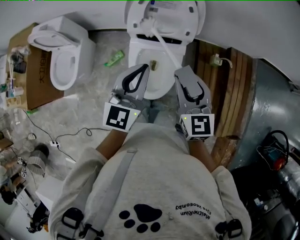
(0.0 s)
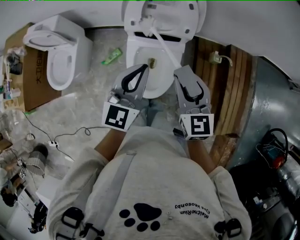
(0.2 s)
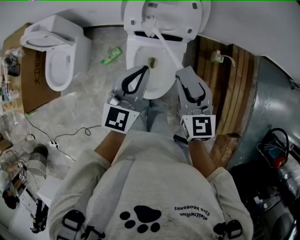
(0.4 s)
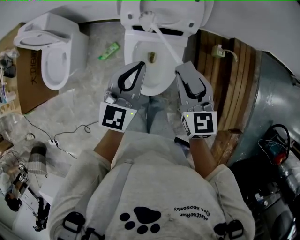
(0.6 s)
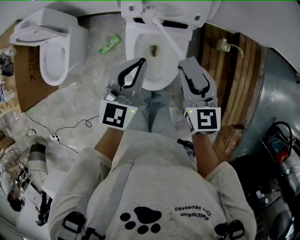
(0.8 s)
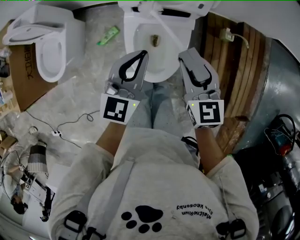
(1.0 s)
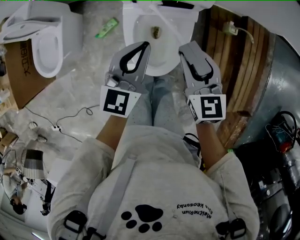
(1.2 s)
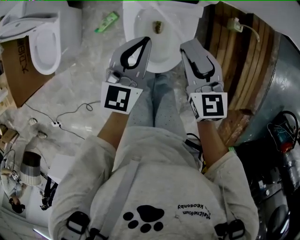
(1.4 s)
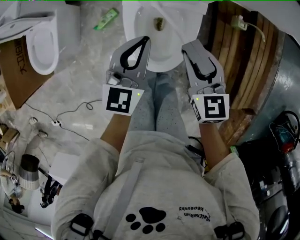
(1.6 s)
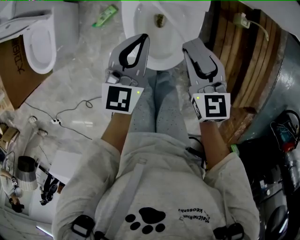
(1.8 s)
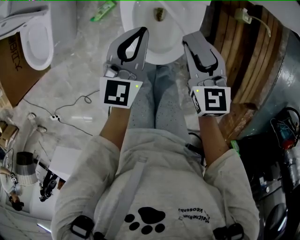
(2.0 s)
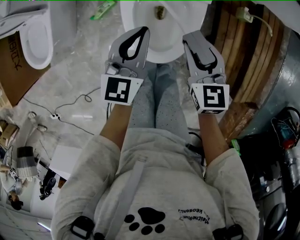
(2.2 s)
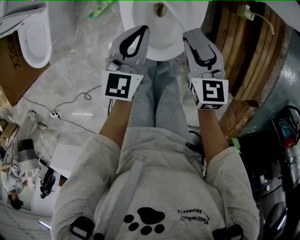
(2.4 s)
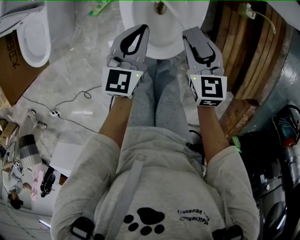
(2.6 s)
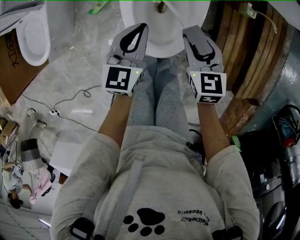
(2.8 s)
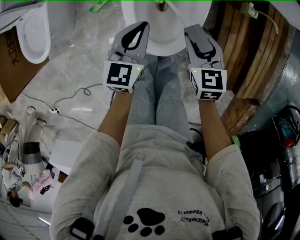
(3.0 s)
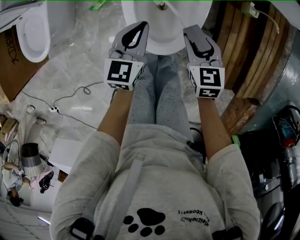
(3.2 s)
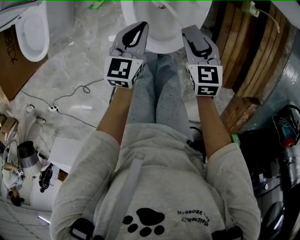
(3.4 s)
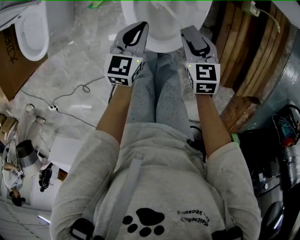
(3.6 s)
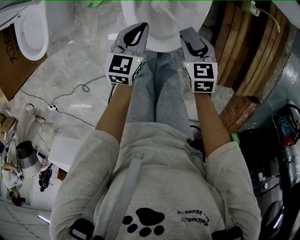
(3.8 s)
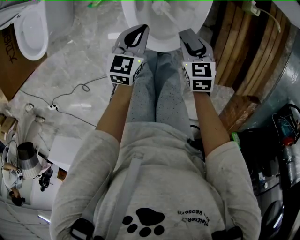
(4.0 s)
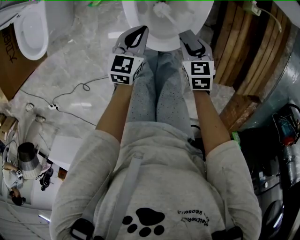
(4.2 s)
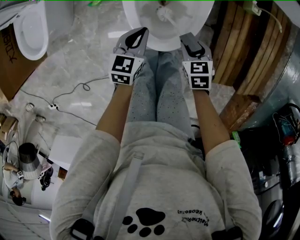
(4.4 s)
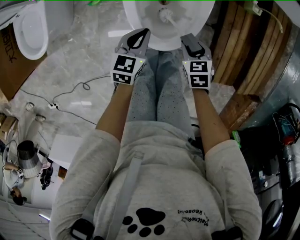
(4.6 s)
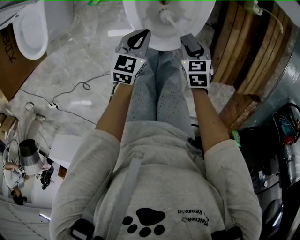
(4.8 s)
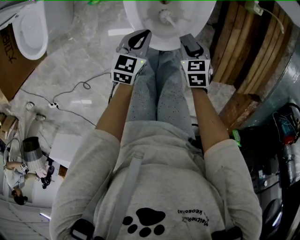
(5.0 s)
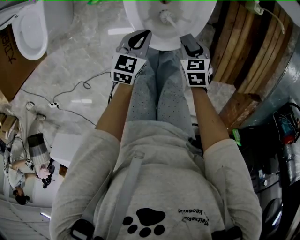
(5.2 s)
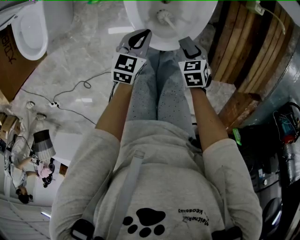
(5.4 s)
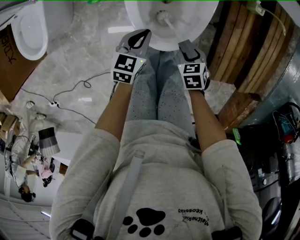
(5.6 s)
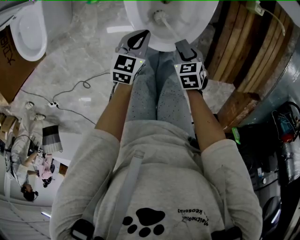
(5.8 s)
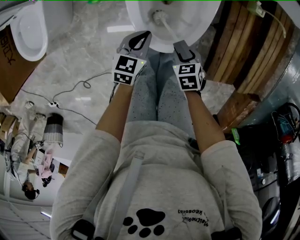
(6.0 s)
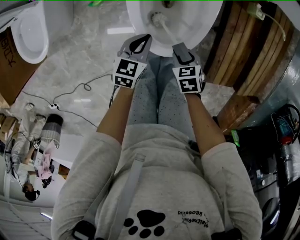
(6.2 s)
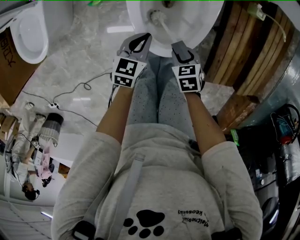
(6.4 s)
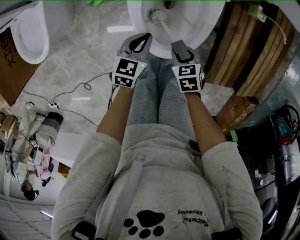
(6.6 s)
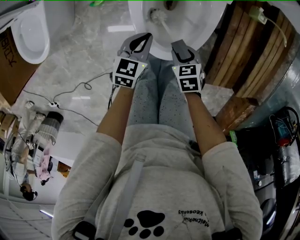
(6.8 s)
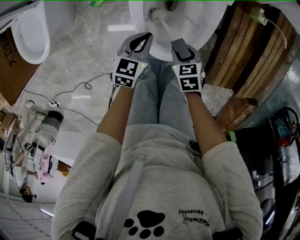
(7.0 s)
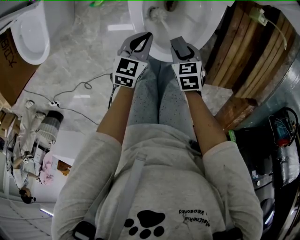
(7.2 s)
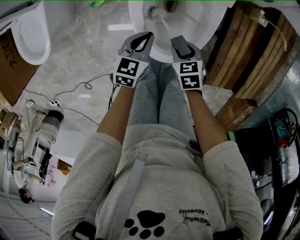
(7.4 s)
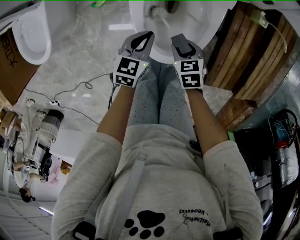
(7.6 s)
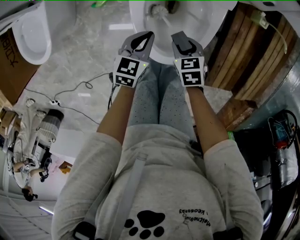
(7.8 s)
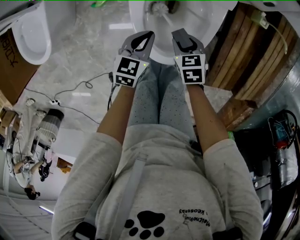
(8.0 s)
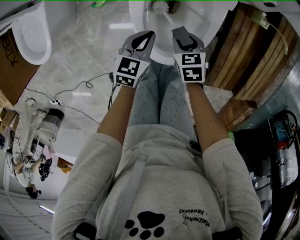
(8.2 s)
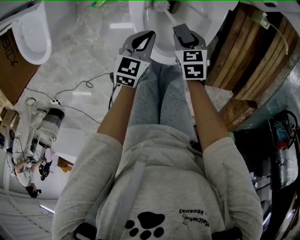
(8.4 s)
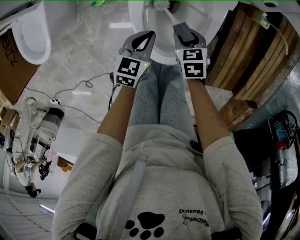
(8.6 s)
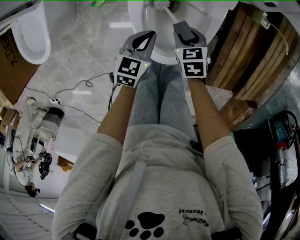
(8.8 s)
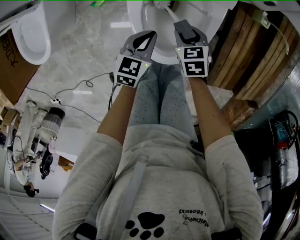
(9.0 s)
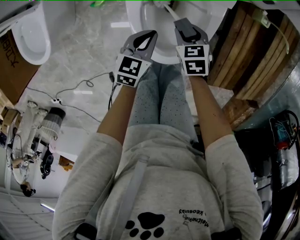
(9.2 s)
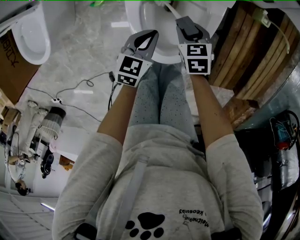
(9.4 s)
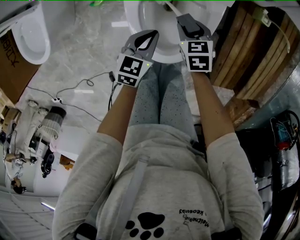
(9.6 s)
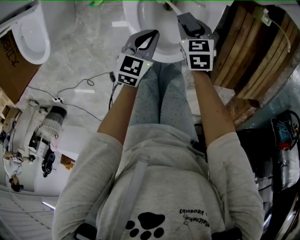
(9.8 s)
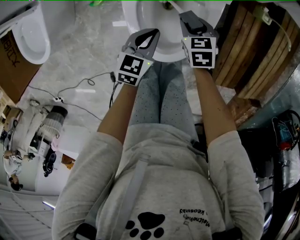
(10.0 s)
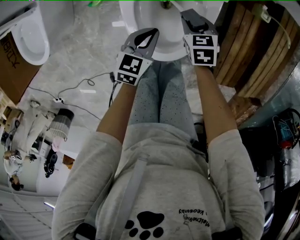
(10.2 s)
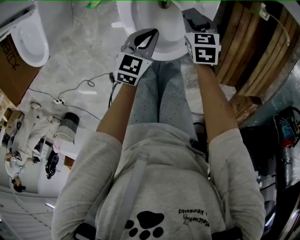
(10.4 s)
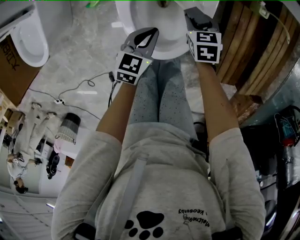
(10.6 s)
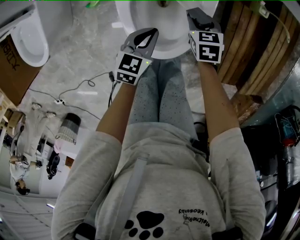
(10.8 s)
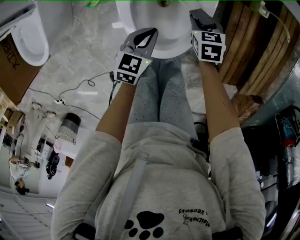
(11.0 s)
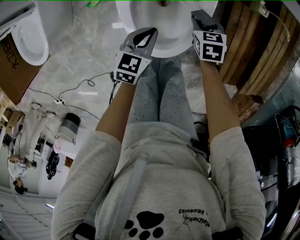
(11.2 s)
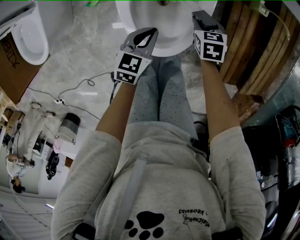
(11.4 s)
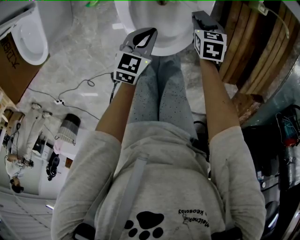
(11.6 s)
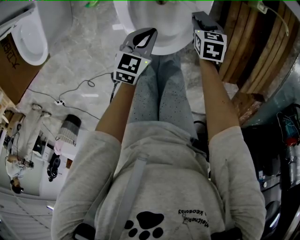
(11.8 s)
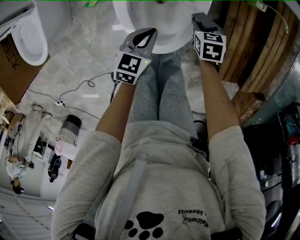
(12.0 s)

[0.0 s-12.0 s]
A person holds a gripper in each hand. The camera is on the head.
0.0 to 1.6 s: Both grippers travel together downward, about 25 cm.
1.6 to 3.0 s: Both grippers move downward, about 10 cm.
3.0 to 4.4 s: The two grippers go roughly 10 cm downward and backward.
4.4 to 6.0 s: The right gripper ends up some 5 cm from where it was.
6.0 to 7.6 s: The right gripper is displaced forward by roughly 10 cm; the left gripper heads forward, covering roughly 5 cm.
7.6 to 9.0 s: The right gripper moves forward, about 5 cm.
9.0 to 10.4 s: The right gripper moves to the right, some 5 cm.
10.4 to 12.0 s: The right gripper moves to the right, about 5 cm.

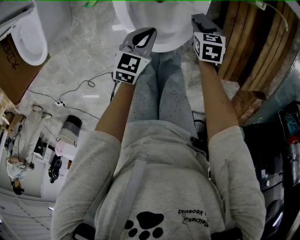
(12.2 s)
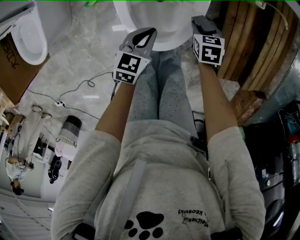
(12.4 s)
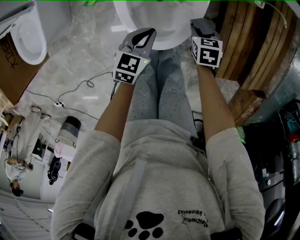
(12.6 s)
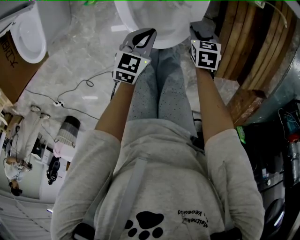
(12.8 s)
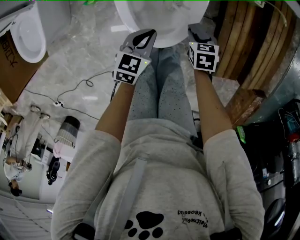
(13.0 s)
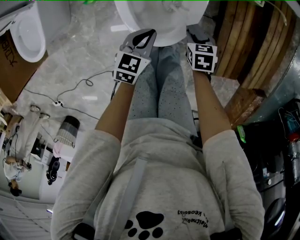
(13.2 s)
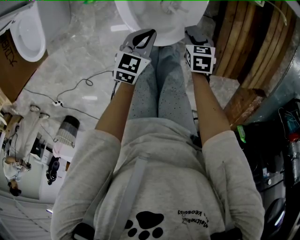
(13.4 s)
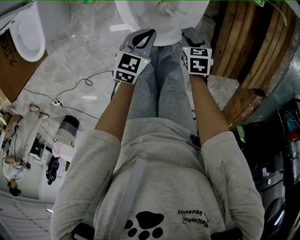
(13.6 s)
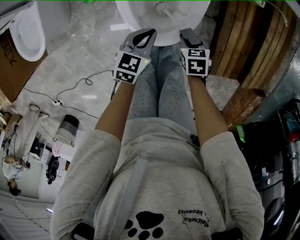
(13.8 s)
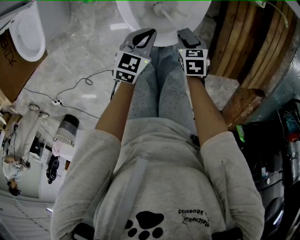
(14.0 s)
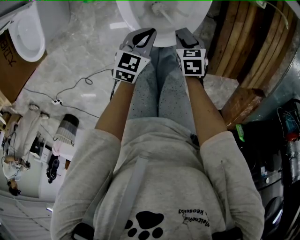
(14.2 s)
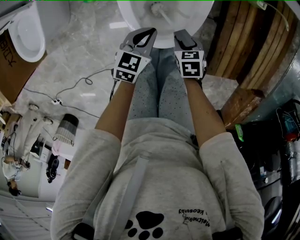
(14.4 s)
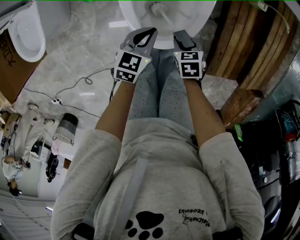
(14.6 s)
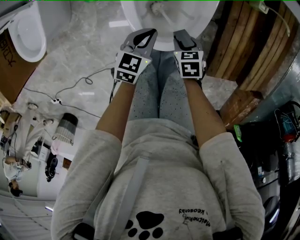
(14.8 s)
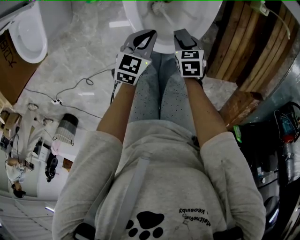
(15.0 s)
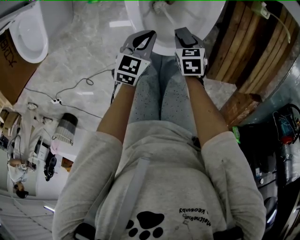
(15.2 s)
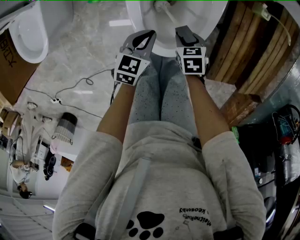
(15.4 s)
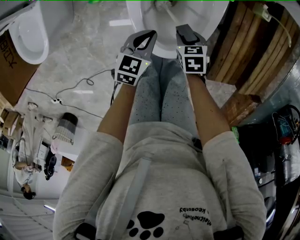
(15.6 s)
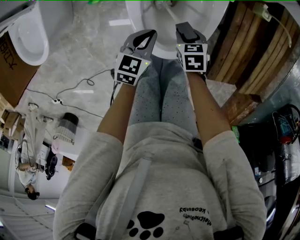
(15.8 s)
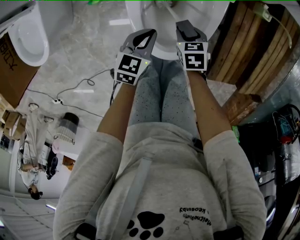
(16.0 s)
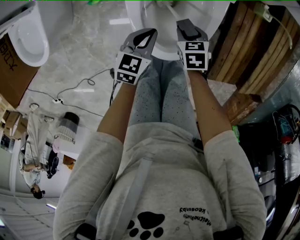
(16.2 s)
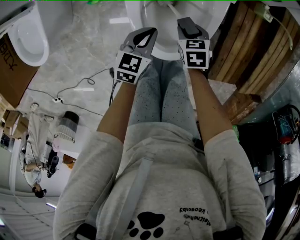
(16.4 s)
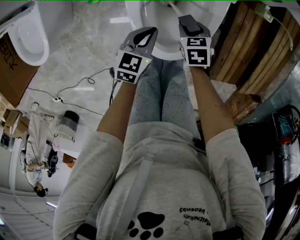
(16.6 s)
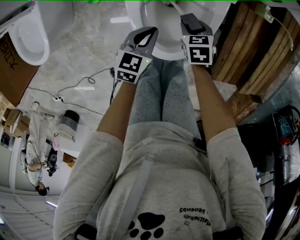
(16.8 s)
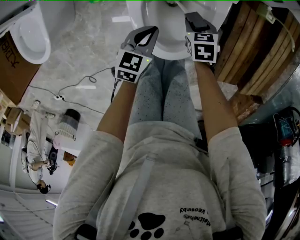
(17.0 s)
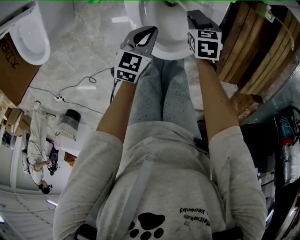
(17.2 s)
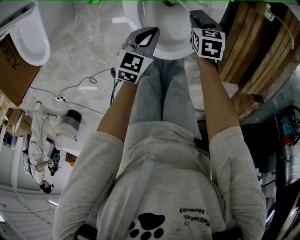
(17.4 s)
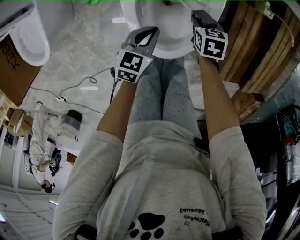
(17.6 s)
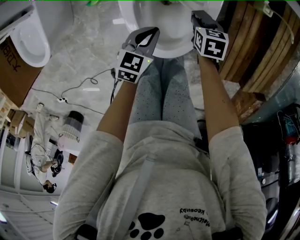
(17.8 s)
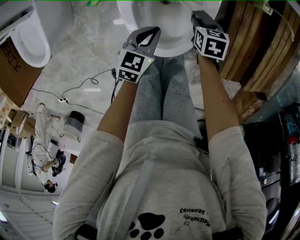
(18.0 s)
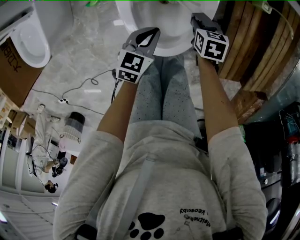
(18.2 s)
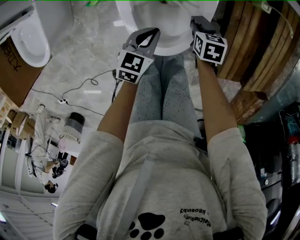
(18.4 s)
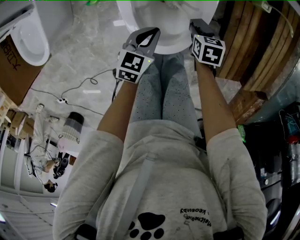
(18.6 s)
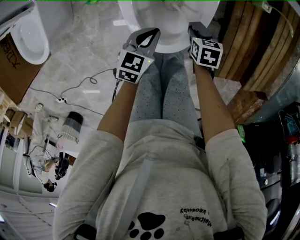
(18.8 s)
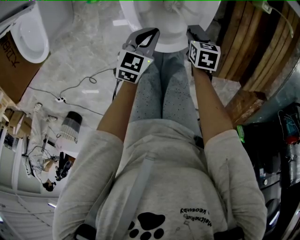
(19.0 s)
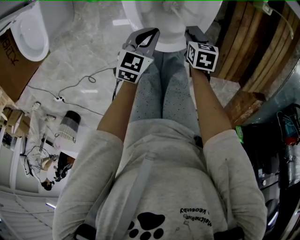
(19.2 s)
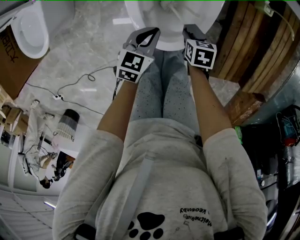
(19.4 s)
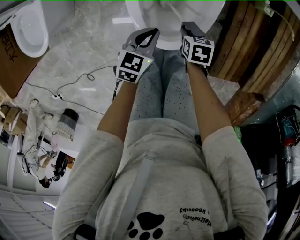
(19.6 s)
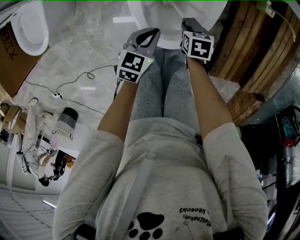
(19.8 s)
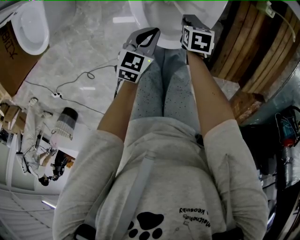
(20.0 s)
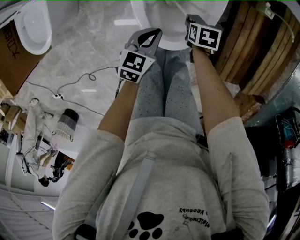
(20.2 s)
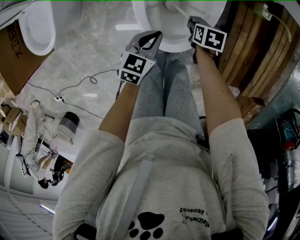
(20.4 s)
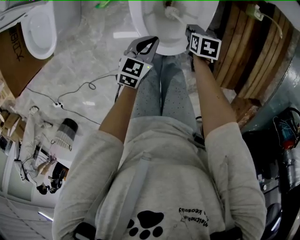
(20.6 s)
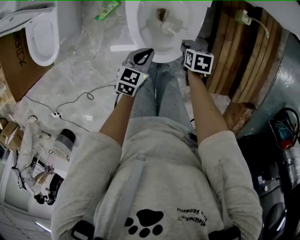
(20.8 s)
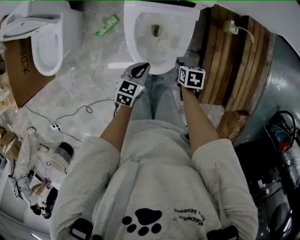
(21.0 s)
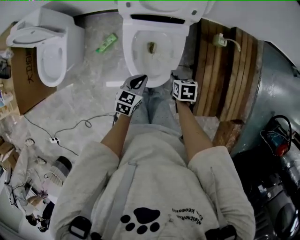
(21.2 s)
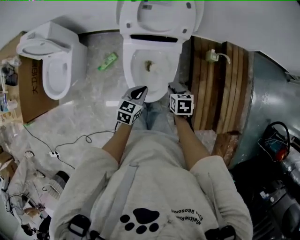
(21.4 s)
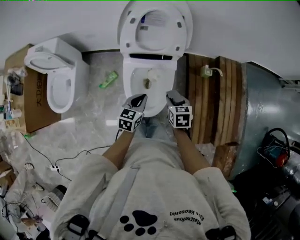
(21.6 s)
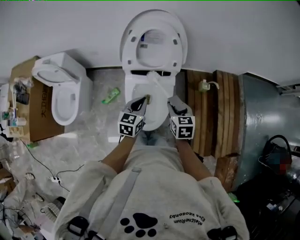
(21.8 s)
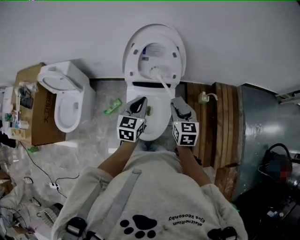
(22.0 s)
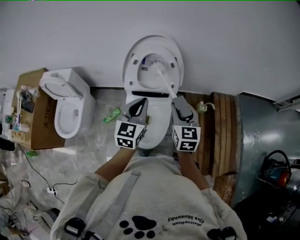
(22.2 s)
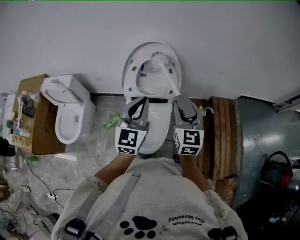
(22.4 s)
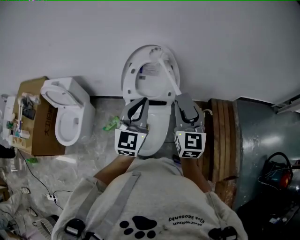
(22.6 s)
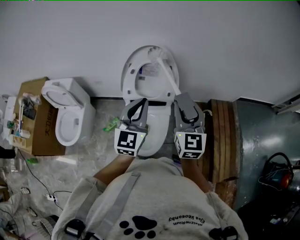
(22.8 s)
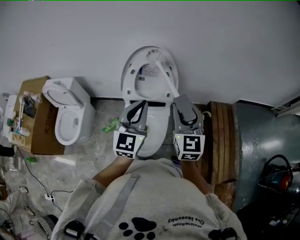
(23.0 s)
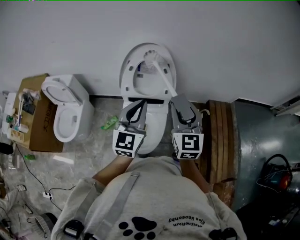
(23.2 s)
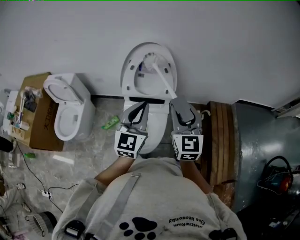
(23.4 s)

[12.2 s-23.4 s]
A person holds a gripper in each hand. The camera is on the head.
12.2 to 13.8 s: The right gripper heads backward, covering roughly 10 cm.
13.8 to 15.4 s: The left gripper moves forward and to the left, some 10 cm. The right gripper heads to the left and forward, covering roughly 10 cm.
15.4 to 17.0 s: The right gripper travels forward by roughly 10 cm.
17.0 to 18.6 s: The right gripper heads to the right, covering approximately 5 cm. Meanwhile the left gripper moves roughly 5 cm.
20.2 to 21.8 s: The grippers both shift upward by about 35 cm. The right gripper points its fingers roughly 30 degrees further upward.
21.8 to 23.4 s: The two grippers go some 25 cm upward. The right gripper angles its fingers upward, by roughly 40 degrees. The left gripper changes its angle by roughly 40 degrees.

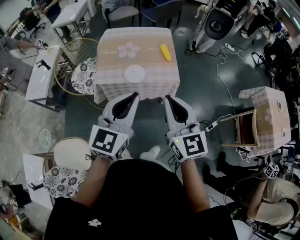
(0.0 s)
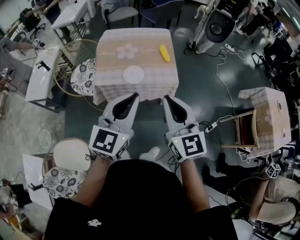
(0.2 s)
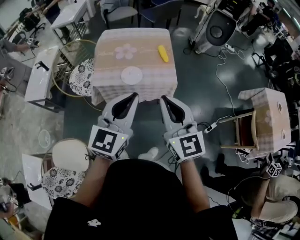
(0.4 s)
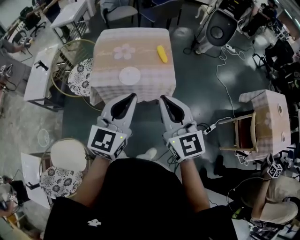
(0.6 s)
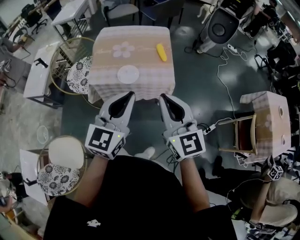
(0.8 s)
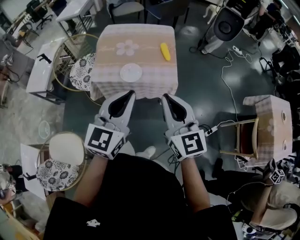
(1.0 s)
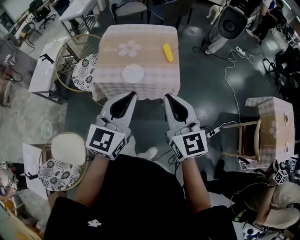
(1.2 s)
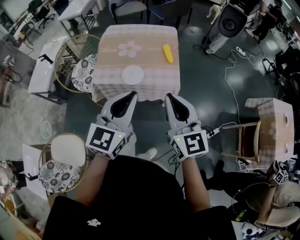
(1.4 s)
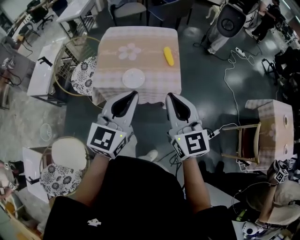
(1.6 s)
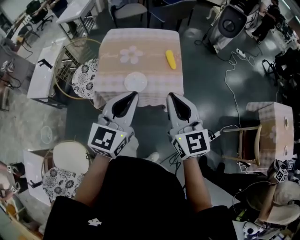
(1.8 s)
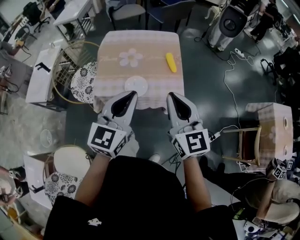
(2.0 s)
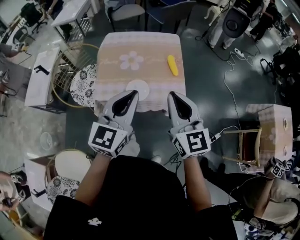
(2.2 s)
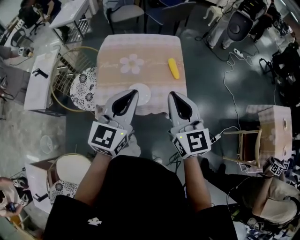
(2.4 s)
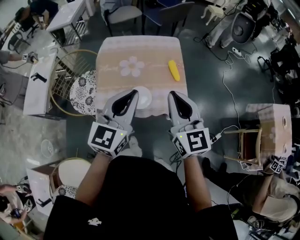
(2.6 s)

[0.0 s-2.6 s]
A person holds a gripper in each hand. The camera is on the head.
0.0 to 1.2 s: The right gripper goes roughly 10 cm to the right and forward, while the left gripper moves to the right, about 5 cm.
1.2 to 2.6 s: The two grippers go about 20 cm forward and to the left.
